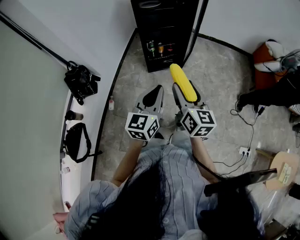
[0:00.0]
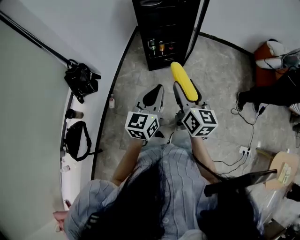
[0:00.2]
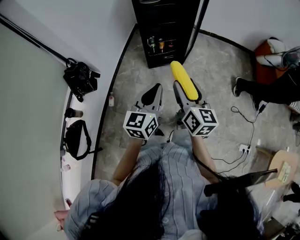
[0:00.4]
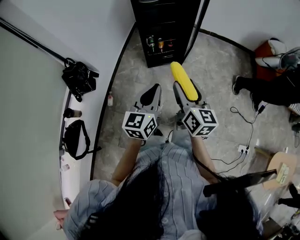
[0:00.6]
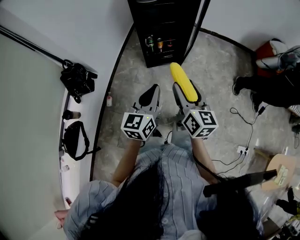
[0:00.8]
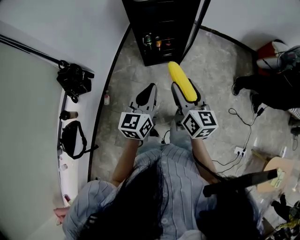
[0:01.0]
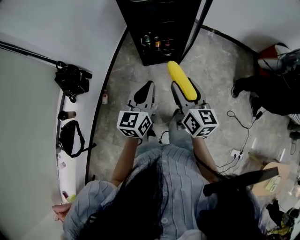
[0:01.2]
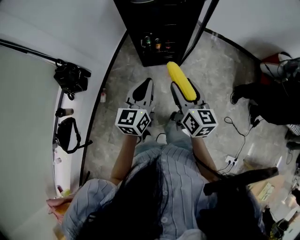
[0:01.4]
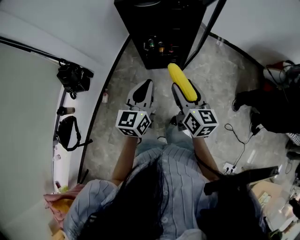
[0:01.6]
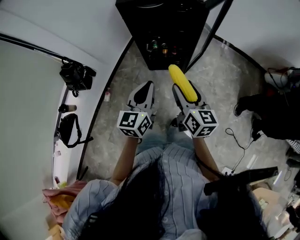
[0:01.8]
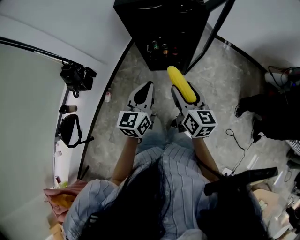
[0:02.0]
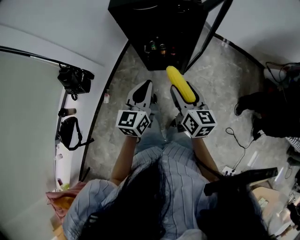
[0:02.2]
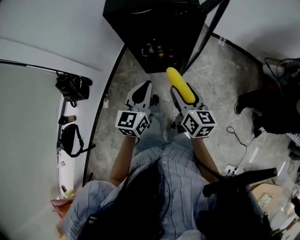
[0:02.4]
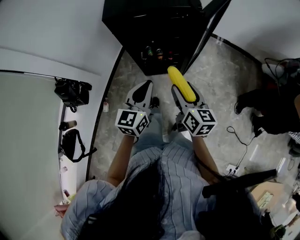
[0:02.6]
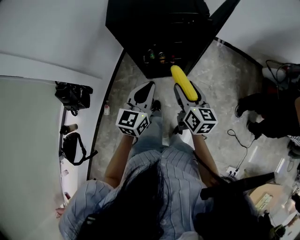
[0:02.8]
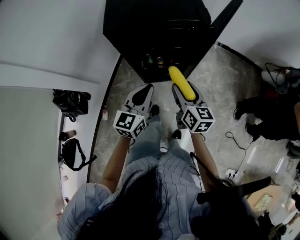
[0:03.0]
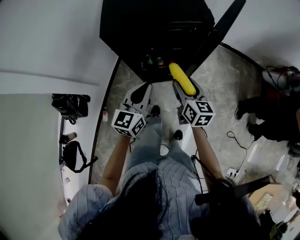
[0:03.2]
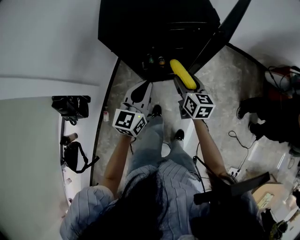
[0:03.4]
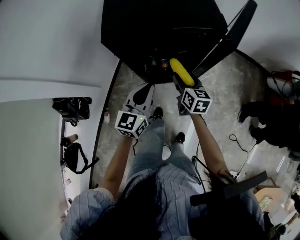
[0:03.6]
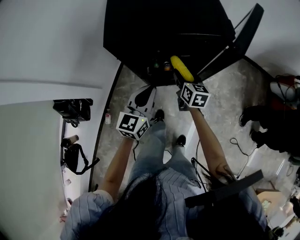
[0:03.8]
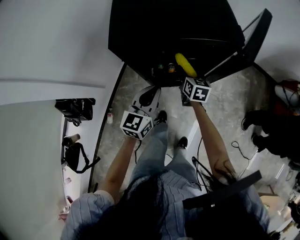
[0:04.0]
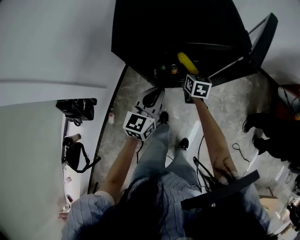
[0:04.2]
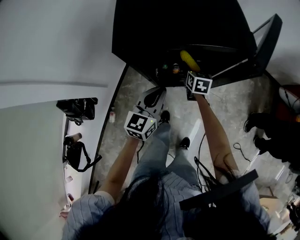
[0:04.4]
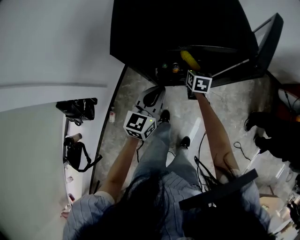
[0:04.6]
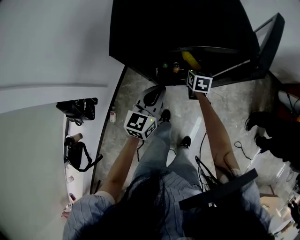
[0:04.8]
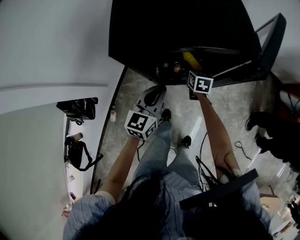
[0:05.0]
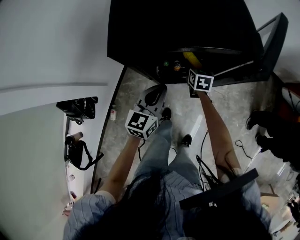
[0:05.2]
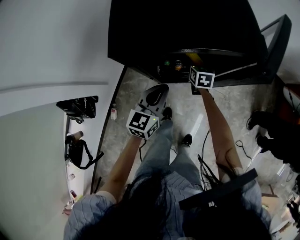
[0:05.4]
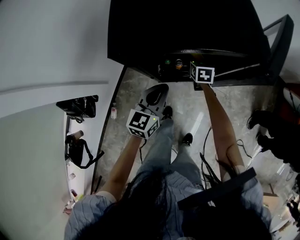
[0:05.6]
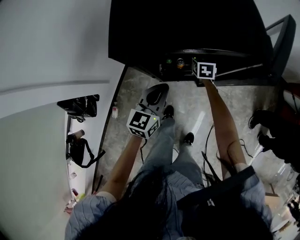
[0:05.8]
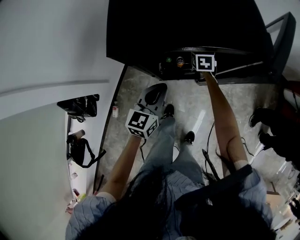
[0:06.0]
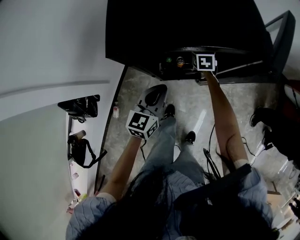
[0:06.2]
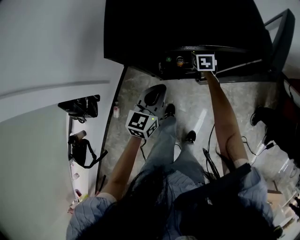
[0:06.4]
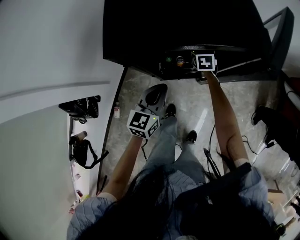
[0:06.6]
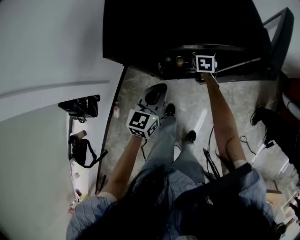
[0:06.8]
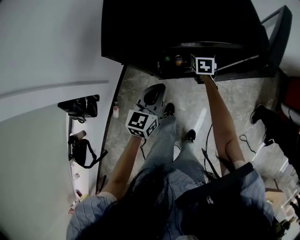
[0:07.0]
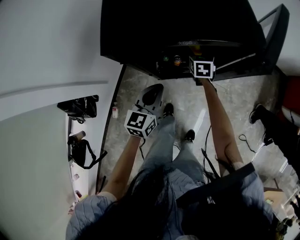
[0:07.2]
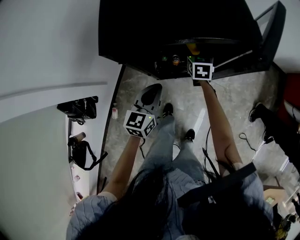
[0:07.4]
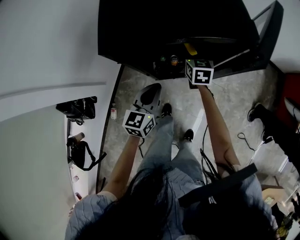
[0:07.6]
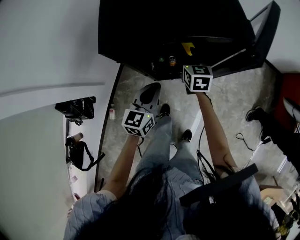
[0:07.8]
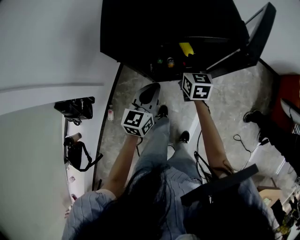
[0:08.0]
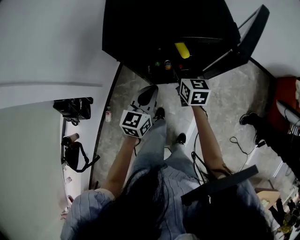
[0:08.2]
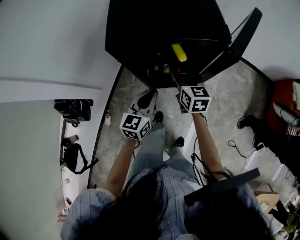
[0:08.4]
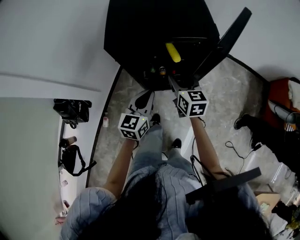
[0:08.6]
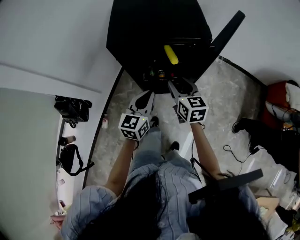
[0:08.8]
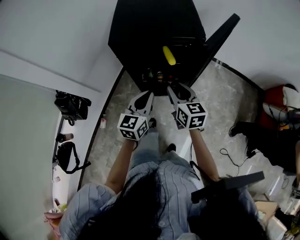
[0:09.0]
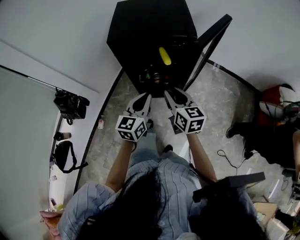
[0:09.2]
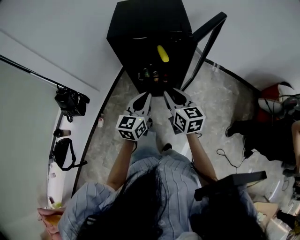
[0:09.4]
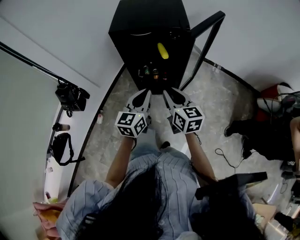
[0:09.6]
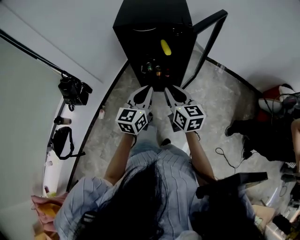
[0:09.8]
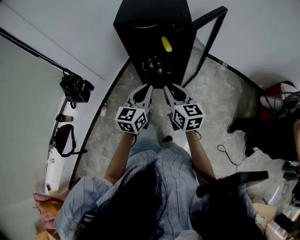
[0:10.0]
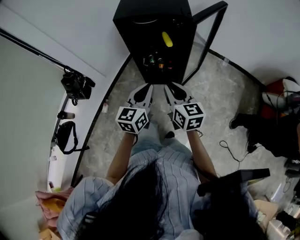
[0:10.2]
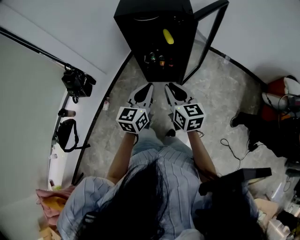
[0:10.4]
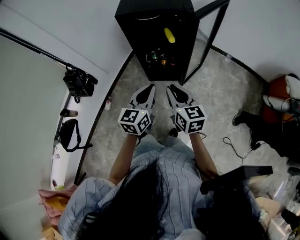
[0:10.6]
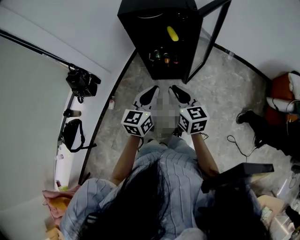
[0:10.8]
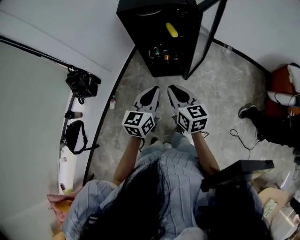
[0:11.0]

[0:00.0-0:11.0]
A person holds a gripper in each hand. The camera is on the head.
0:00.0 to 0:01.6: The right gripper heads forward and to the right, covering about 25 cm; the left gripper goes roughly 20 cm forward.
0:01.6 to 0:03.2: Both grippers move forward, approximately 25 cm.
0:03.2 to 0:04.8: The right gripper goes approximately 30 cm forward and downward, and turns by roughly 20 degrees, while the left gripper heads forward and downward, covering some 10 cm.
0:04.8 to 0:06.2: The right gripper travels forward by about 5 cm.
0:06.2 to 0:07.8: The right gripper heads upward and backward, covering about 15 cm.
0:07.8 to 0:09.4: The right gripper goes about 35 cm backward and upward, and closes its fingers, while the left gripper is displaced backward, upward and to the right by about 25 cm.
0:09.4 to 0:11.0: The two grippers go roughly 15 cm backward.

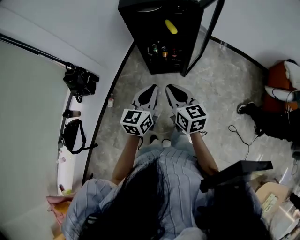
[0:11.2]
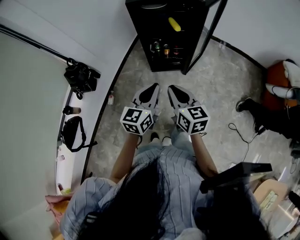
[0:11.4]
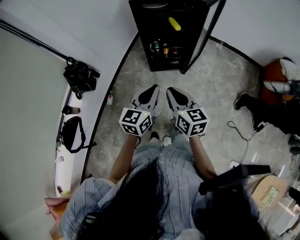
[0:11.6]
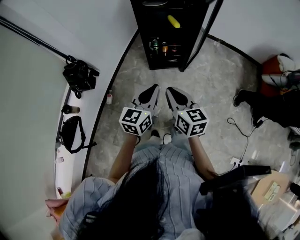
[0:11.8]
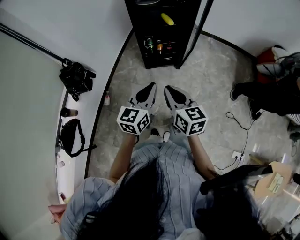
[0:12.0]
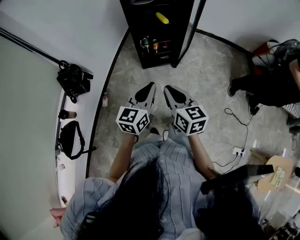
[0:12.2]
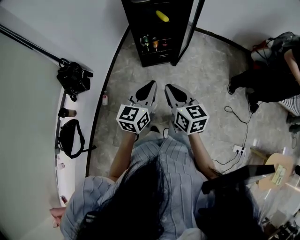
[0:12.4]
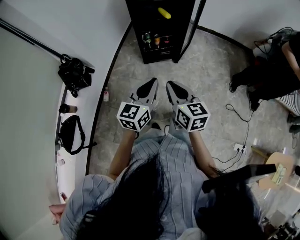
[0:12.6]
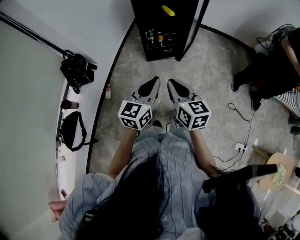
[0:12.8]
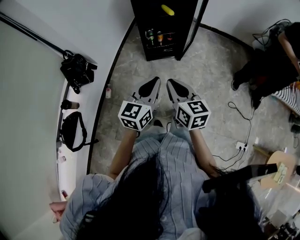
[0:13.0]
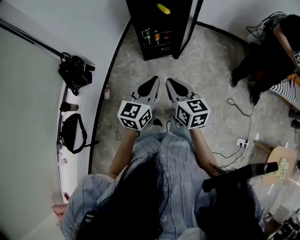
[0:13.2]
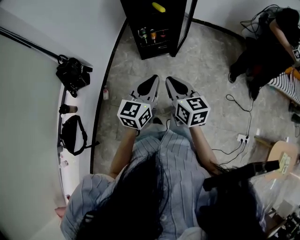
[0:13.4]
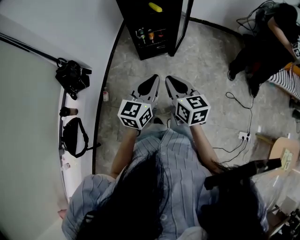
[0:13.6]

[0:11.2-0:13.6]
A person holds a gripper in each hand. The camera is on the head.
0:11.2 to 0:12.4: The grippers both shift backward and to the left by approximately 15 cm.
0:12.4 to 0:13.6: The grippers make only small movements.

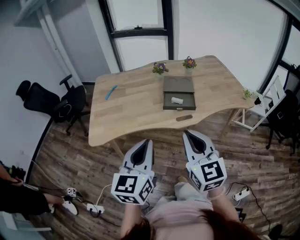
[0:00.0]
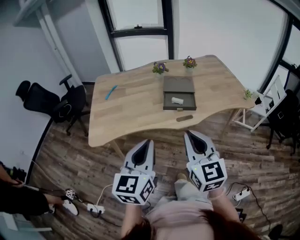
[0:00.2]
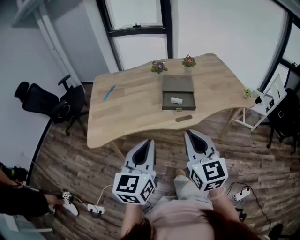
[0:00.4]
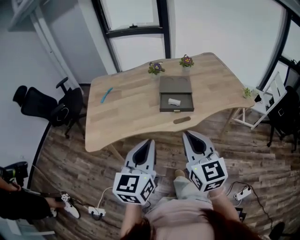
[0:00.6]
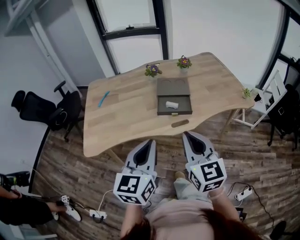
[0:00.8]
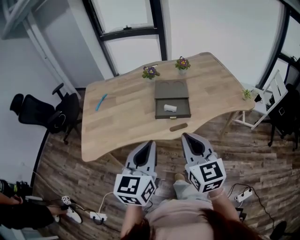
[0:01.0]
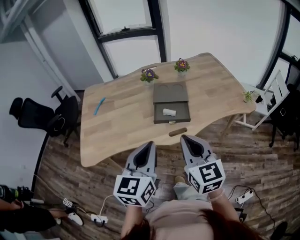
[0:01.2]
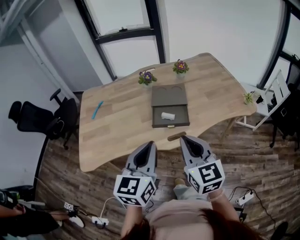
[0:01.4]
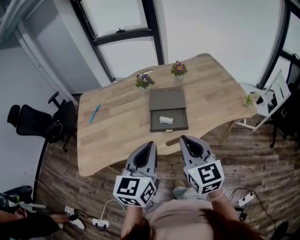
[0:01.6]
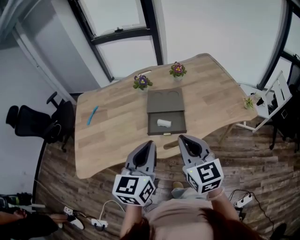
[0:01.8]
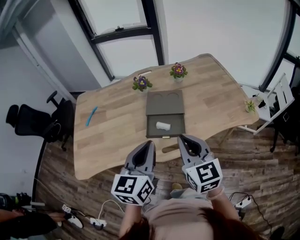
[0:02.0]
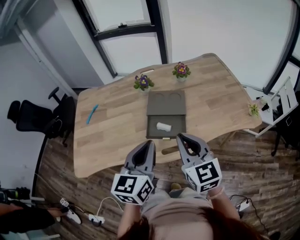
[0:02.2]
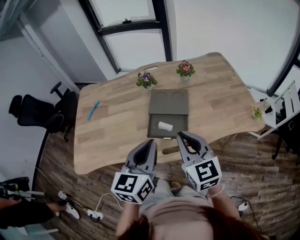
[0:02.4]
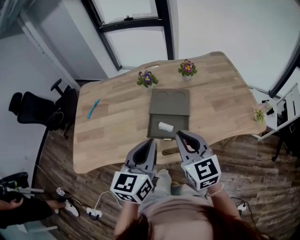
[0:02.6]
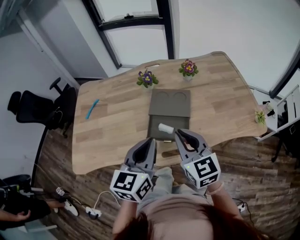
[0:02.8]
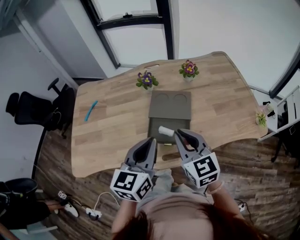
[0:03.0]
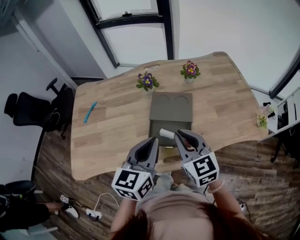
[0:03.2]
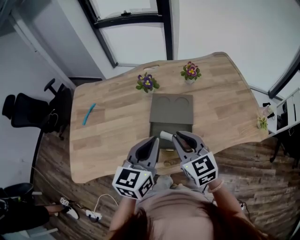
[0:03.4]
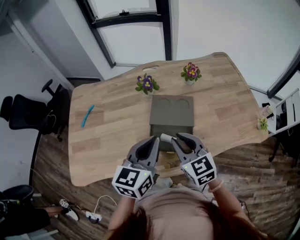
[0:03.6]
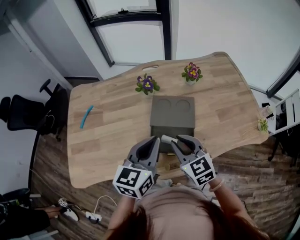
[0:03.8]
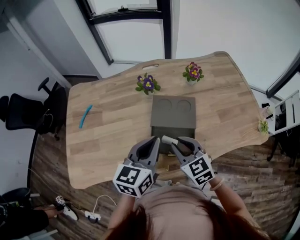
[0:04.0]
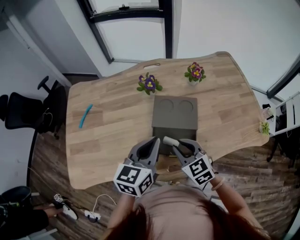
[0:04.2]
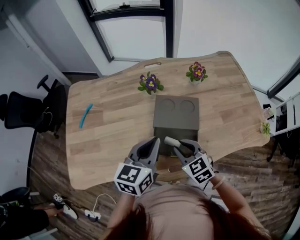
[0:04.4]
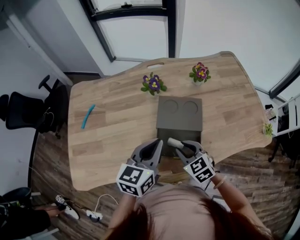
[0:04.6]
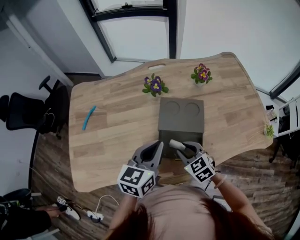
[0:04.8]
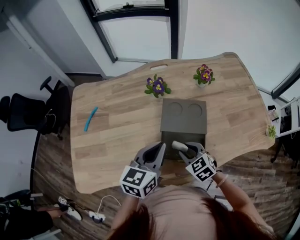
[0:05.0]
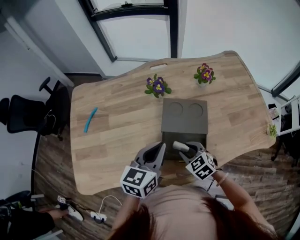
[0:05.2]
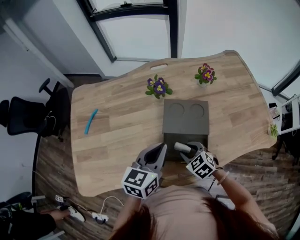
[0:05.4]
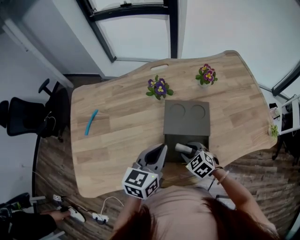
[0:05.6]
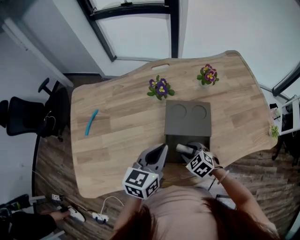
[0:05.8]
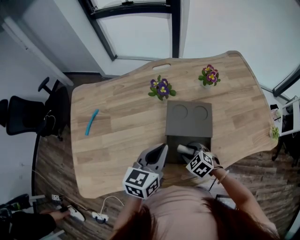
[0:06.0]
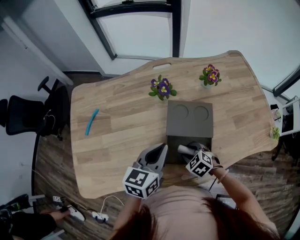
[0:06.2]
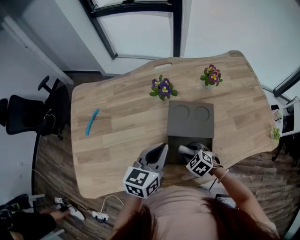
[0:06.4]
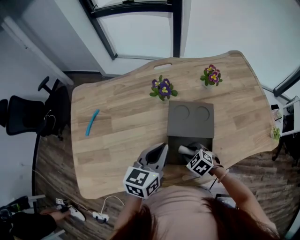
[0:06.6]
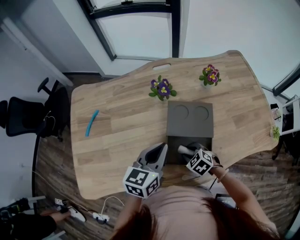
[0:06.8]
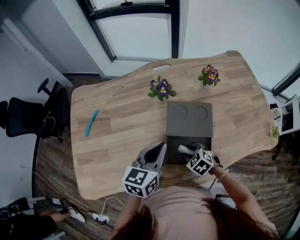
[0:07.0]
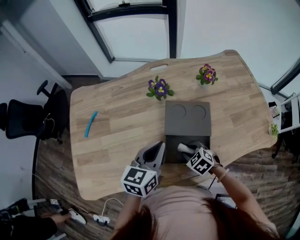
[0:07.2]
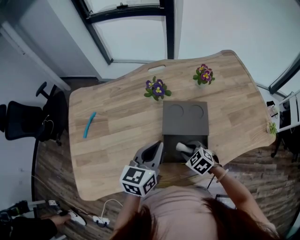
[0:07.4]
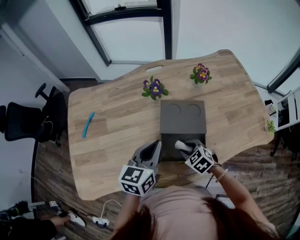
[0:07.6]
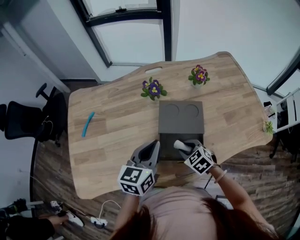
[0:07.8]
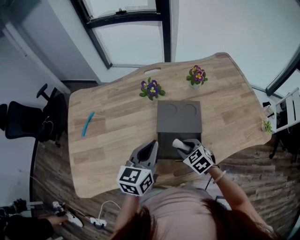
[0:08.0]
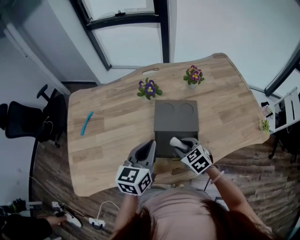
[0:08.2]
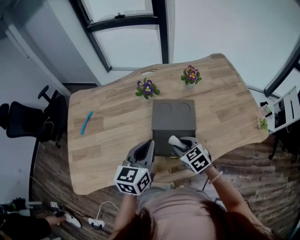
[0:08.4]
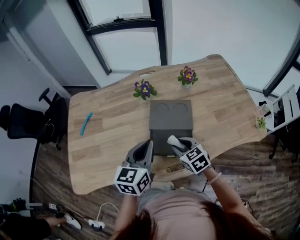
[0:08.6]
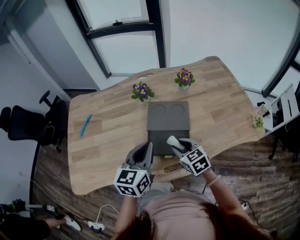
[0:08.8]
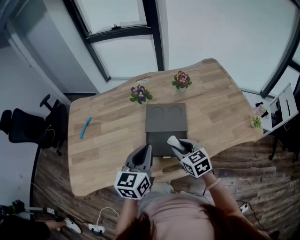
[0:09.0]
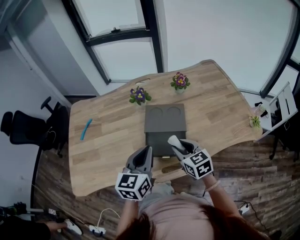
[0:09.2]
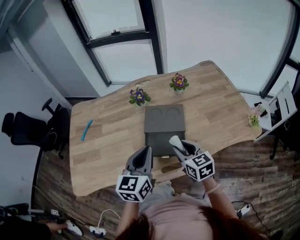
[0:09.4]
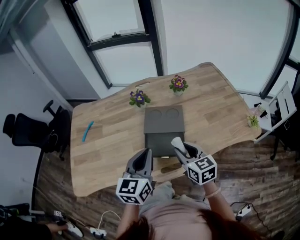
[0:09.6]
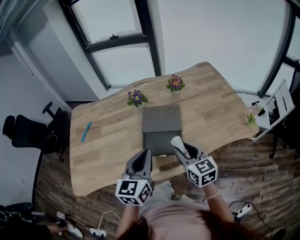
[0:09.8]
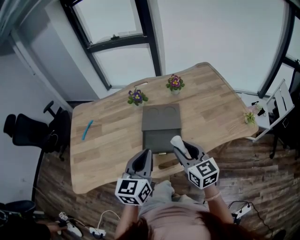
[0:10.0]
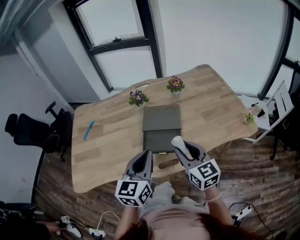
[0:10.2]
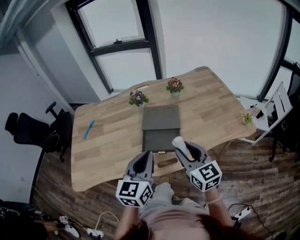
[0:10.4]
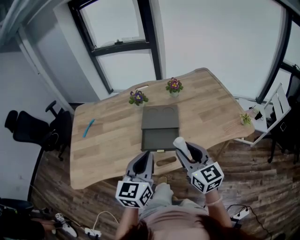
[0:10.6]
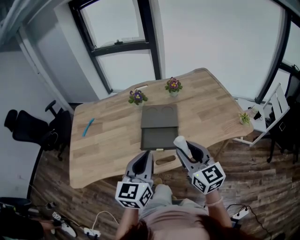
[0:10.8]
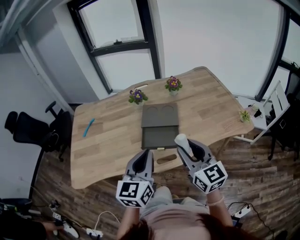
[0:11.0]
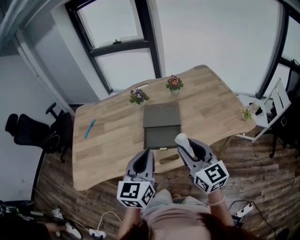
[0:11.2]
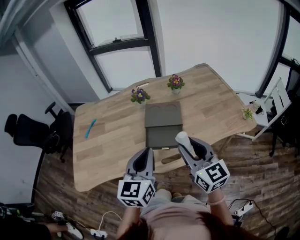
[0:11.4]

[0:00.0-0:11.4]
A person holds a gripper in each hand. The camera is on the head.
0:00.0 to 0:01.4: Both grippers move forward and to the right, some 15 cm.
0:01.4 to 0:02.8: Both grippers move forward, roughly 15 cm.
0:02.8 to 0:04.2: The left gripper heads forward and downward, covering some 15 cm. The right gripper travels downward and forward by approximately 15 cm, and swivels approximately 20 degrees.
0:04.2 to 0:05.6: The left gripper moves some 5 cm. The right gripper travels downward by roughly 10 cm, and rotates roughly 20 degrees.
0:05.6 to 0:07.2: The grippers stay close to where they were, moving slightly.
0:07.2 to 0:08.6: The right gripper moves upward, roughly 10 cm, and changes its angle by approximately 20 degrees. The left gripper is displaced backward by some 5 cm.
0:08.6 to 0:10.0: The right gripper goes some 15 cm upward, backward and to the right, and turns by some 30 degrees; the left gripper travels backward by approximately 10 cm.
0:10.0 to 0:11.4: The right gripper goes roughly 10 cm upward and backward. The left gripper shifts by some 5 cm.
